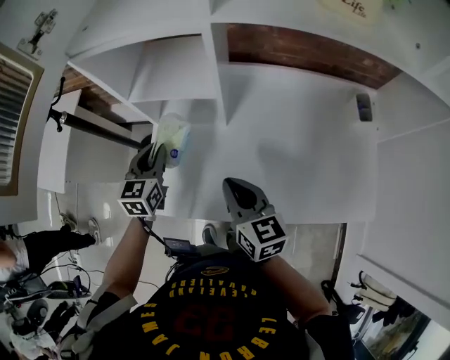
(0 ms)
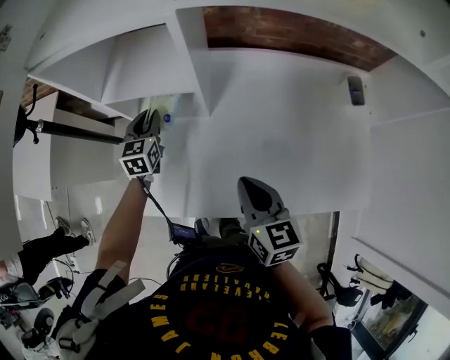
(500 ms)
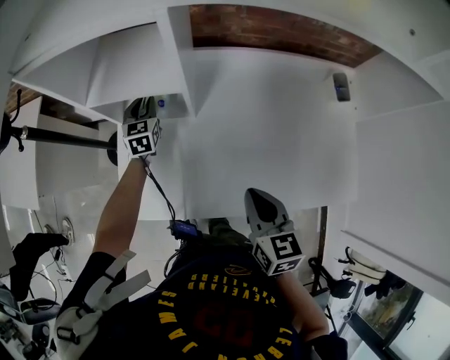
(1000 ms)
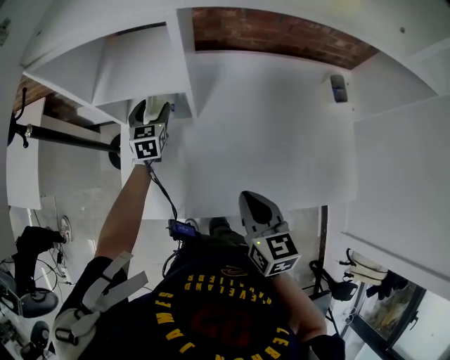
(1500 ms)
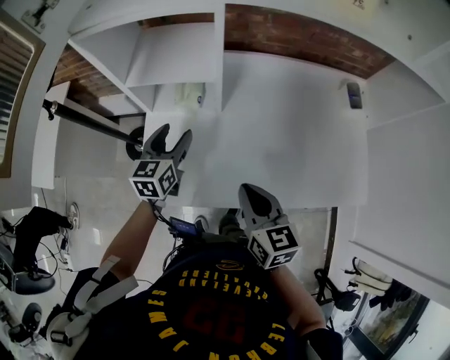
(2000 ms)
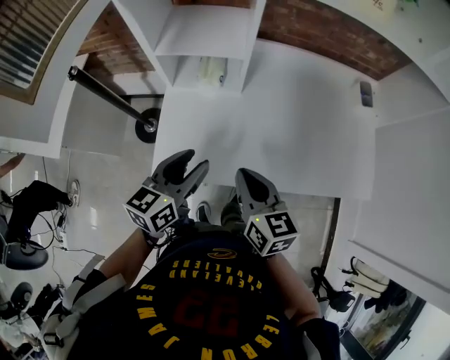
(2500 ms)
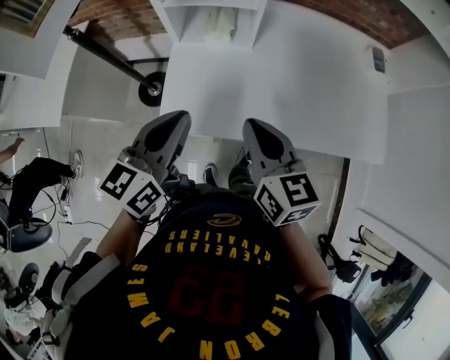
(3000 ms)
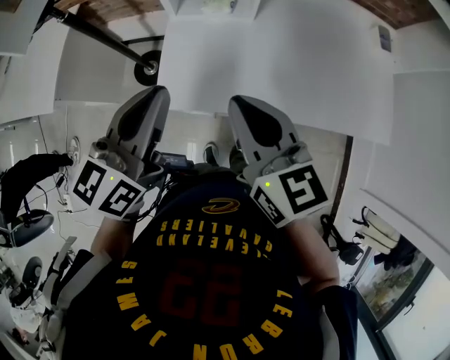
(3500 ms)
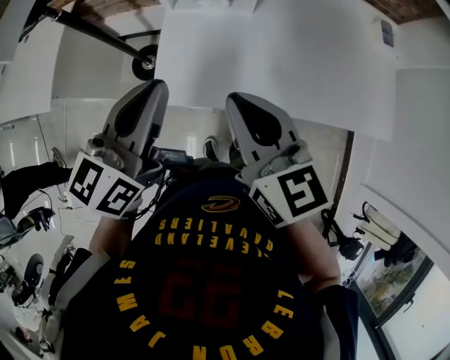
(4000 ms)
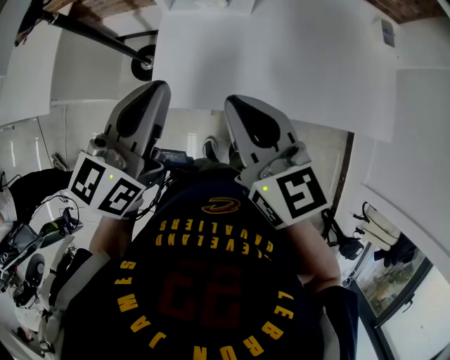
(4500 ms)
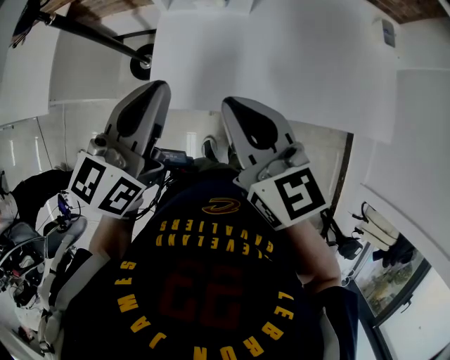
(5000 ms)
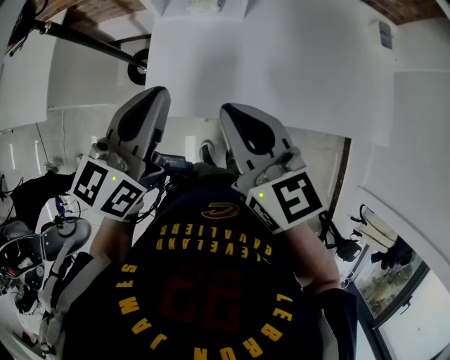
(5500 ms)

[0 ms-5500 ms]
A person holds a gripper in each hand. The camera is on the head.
0 ms to 2000 ms: The left gripper moves to the right, some 5 cm, goes forward and returns, roughly 15 cm each way, and opens up. The right gripper moves backward, roughly 5 cm, and moves about 10 cm to the right and comes back.
2000 ms to 3500 ms: The left gripper is displaced backward and upward by about 25 cm, and closes, while the right gripper is displaced to the left, upward and backward by some 15 cm.
3500 ms to 5500 ms: The left gripper changes place by about 5 cm.

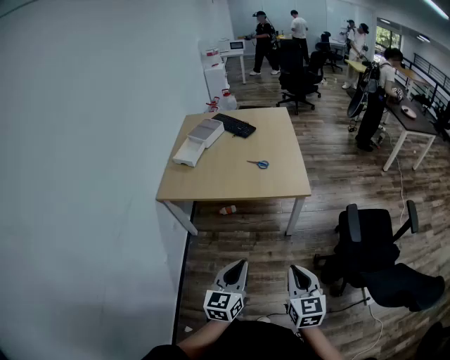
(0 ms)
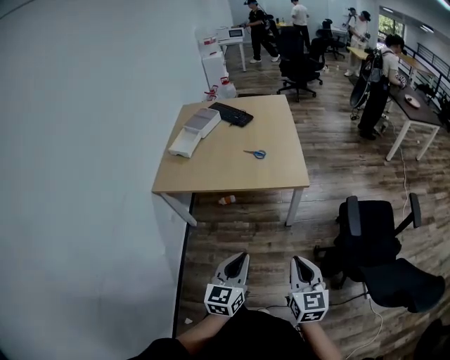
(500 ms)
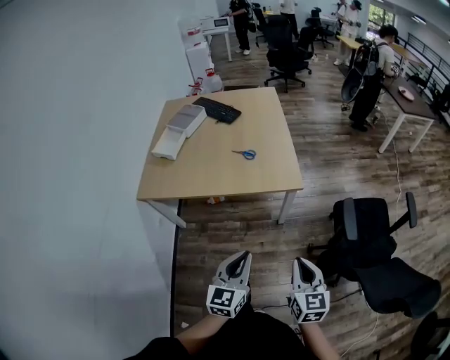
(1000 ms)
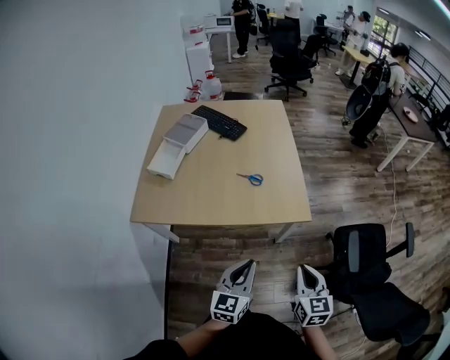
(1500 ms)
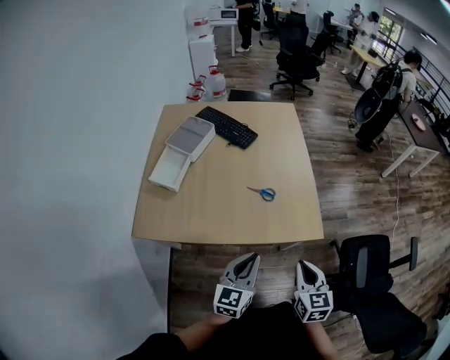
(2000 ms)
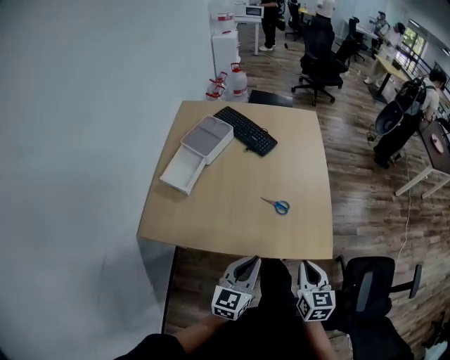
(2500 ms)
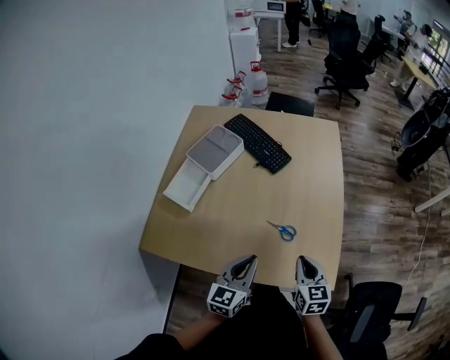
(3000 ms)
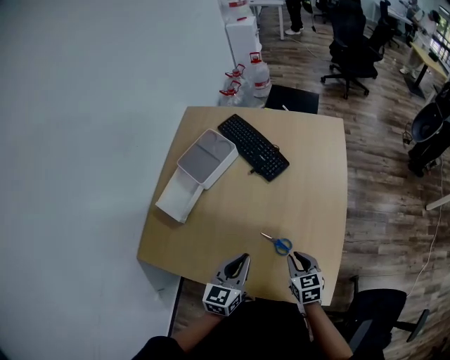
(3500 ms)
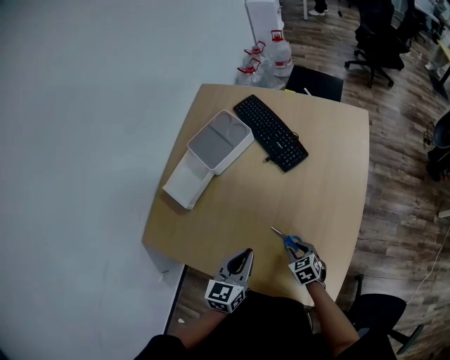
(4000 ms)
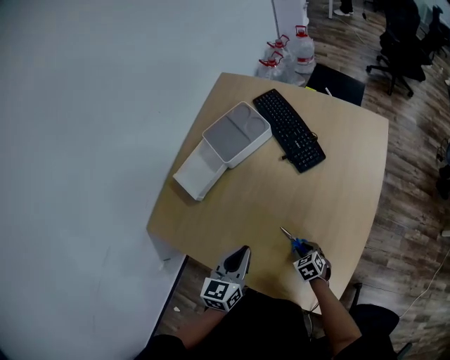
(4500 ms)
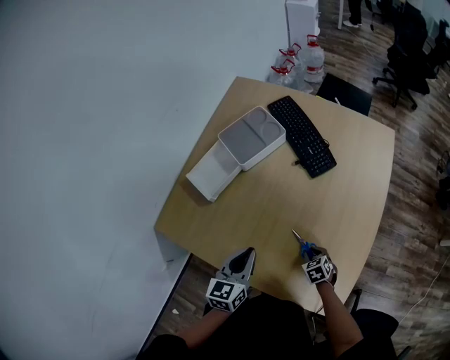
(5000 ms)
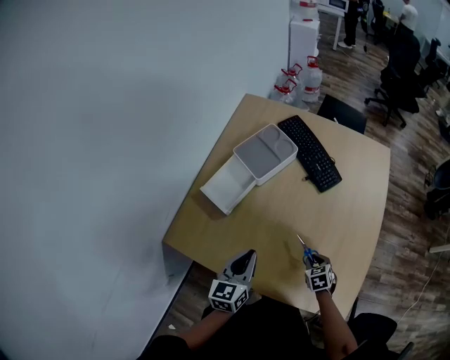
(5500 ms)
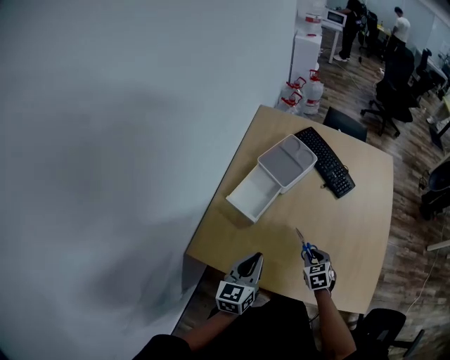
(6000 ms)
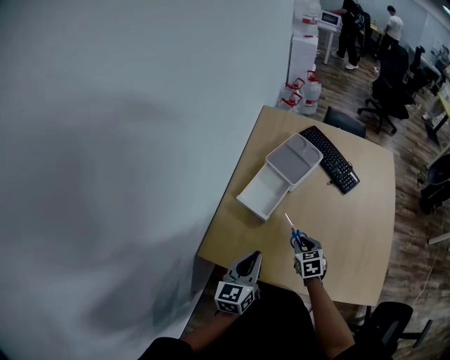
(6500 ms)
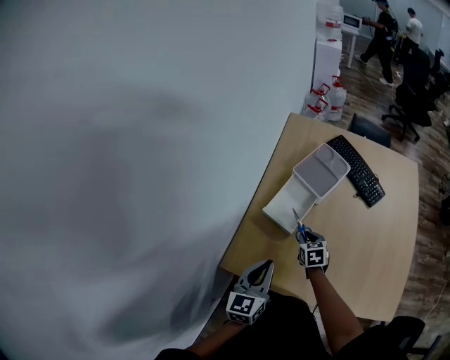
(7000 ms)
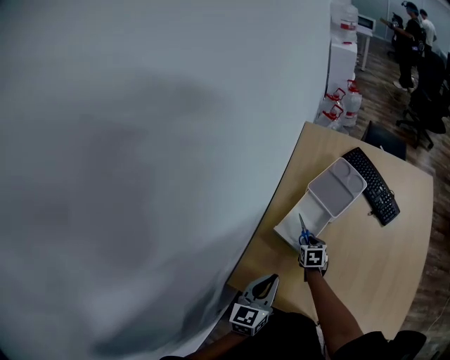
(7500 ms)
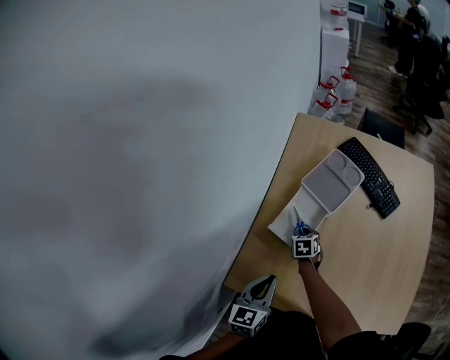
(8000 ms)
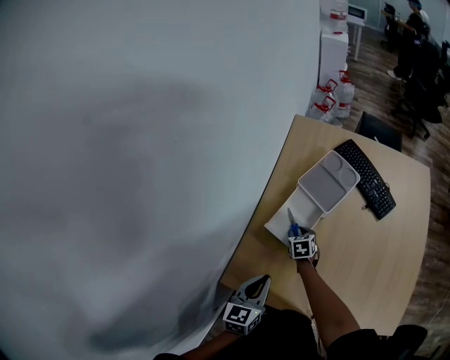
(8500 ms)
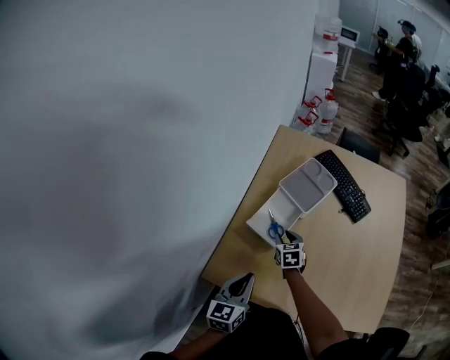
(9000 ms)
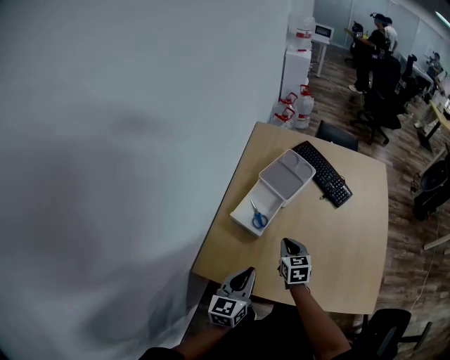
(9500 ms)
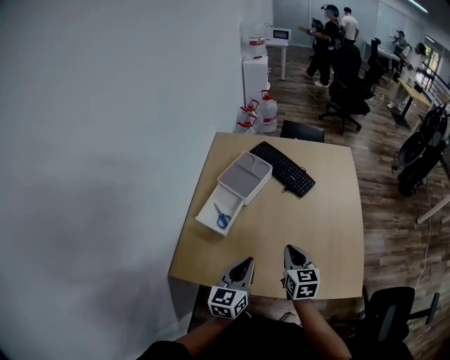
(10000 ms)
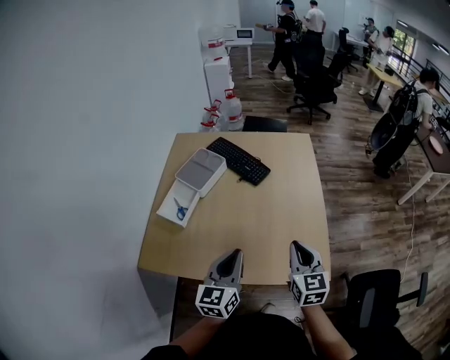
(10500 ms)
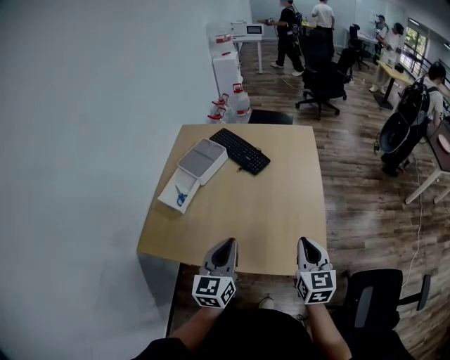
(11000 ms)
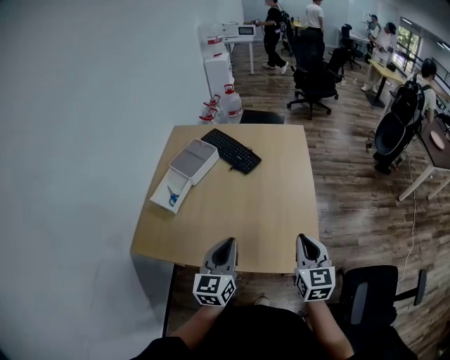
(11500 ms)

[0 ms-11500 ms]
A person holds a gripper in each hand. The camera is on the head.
0 ms to 2000 ms: The two grippers go some 35 cm forward.
2000 ms to 4000 ms: The left gripper shifts by about 30 cm, and turns by roughly 30 degrees. The right gripper ends up roughly 40 cm from where it was, turns by approximately 50 degrees, and opens.
4000 ms to 6000 ms: The two grippers go roughly 25 cm to the left.
6000 ms to 7500 ms: The left gripper heads to the left, covering about 10 cm; the right gripper goes roughly 30 cm to the left and forward.
7500 ms to 9500 ms: The left gripper shifts some 10 cm to the right and backward, while the right gripper travels upward, backward and to the right by about 20 cm.
9500 ms to 11500 ms: Both grippers travel together to the right, roughly 40 cm. The right gripper rotates approximately 30 degrees.

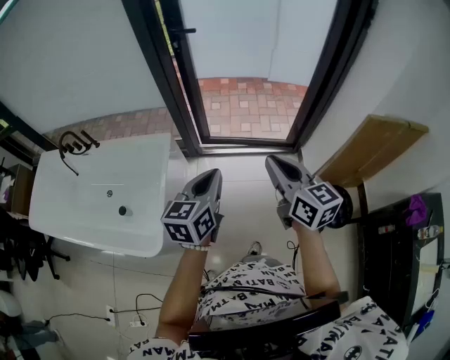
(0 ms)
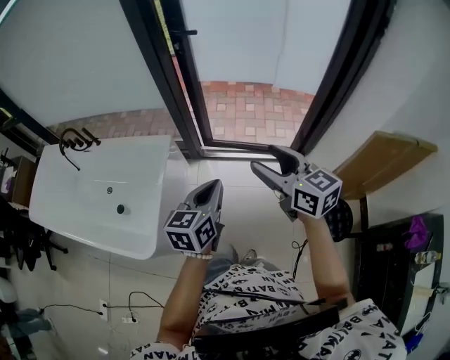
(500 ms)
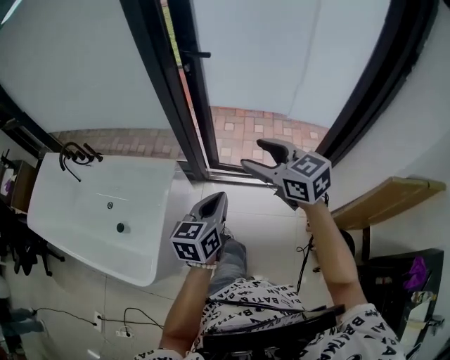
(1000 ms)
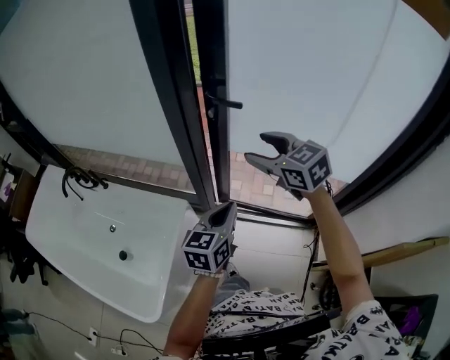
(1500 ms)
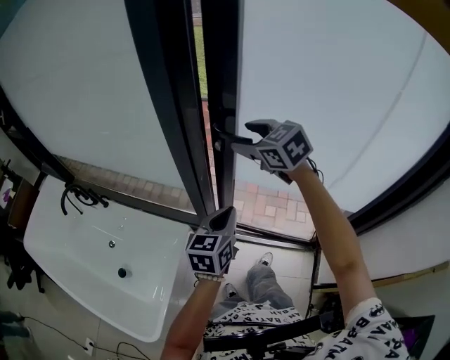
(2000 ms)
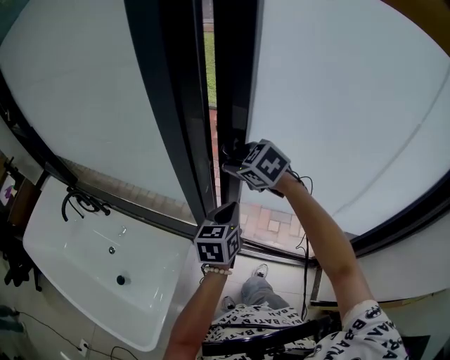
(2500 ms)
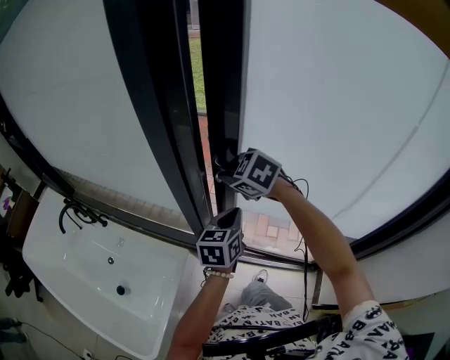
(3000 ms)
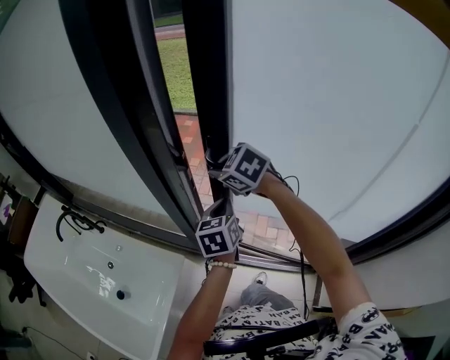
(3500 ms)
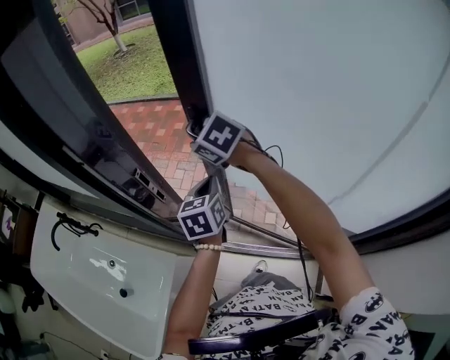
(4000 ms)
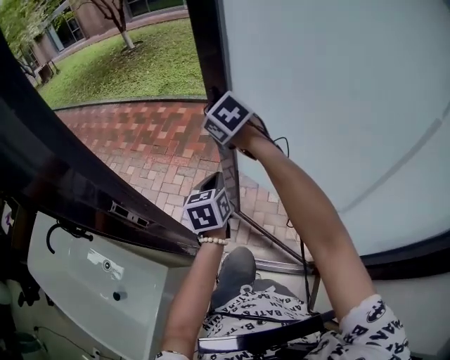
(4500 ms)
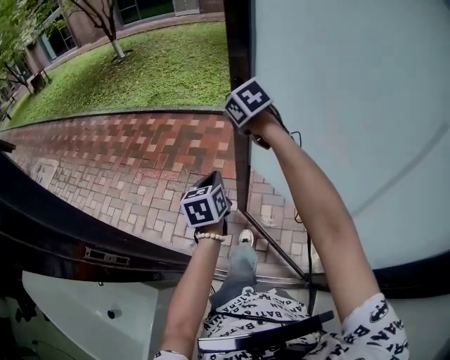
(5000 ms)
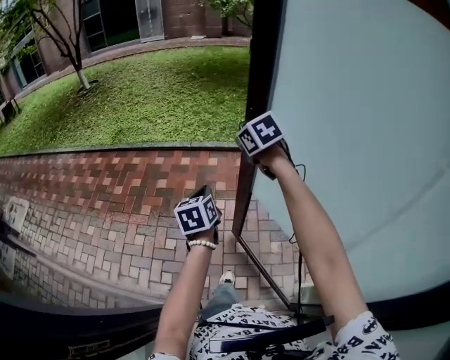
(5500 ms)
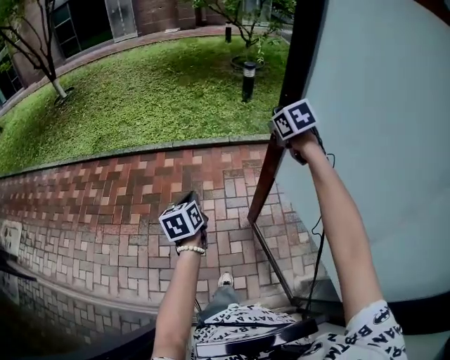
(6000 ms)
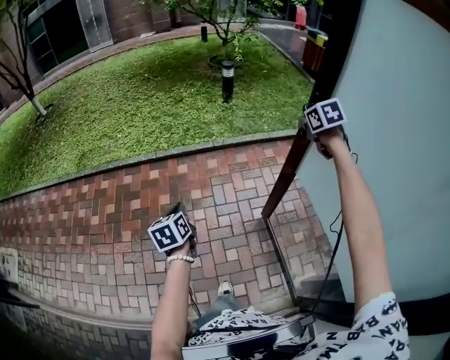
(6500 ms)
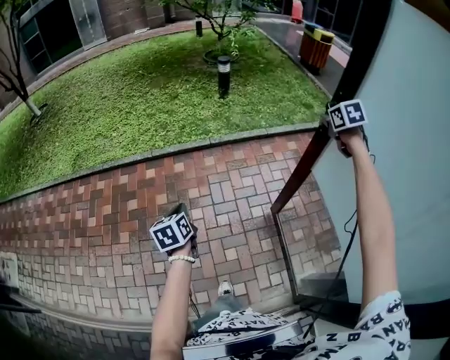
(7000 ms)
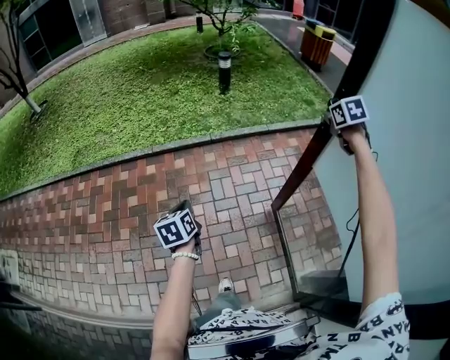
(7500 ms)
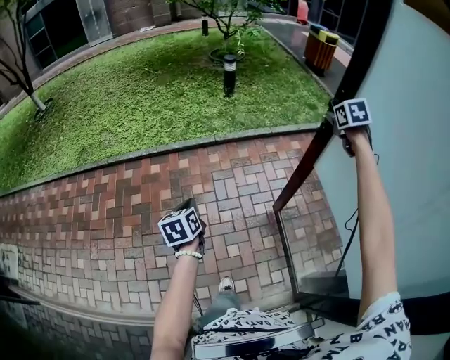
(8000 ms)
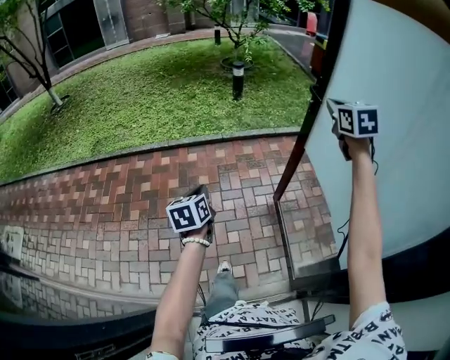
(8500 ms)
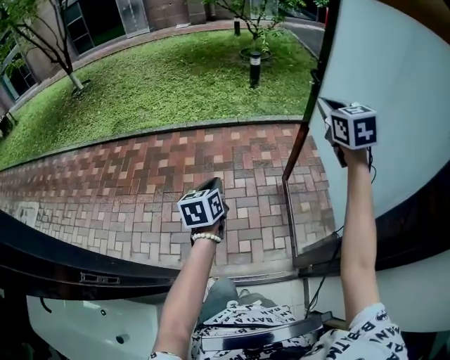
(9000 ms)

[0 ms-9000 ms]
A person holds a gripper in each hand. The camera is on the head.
0 ms to 2000 ms: Both grippers move forward, about 50 cm. The right gripper changes its angle by approximately 50 degrees, and opens up.
2000 ms to 4500 ms: Both grippers move forward and to the right, roughly 35 cm. The right gripper closes its fingers.
4500 ms to 7000 ms: The left gripper ends up roughly 50 cm from where it was, while the right gripper shifts by approximately 80 cm, and turns by about 60 degrees.
7000 ms to 9000 ms: The two grippers go some 40 cm backward and upward. The right gripper changes its angle by about 30 degrees, and opens, then closes again.

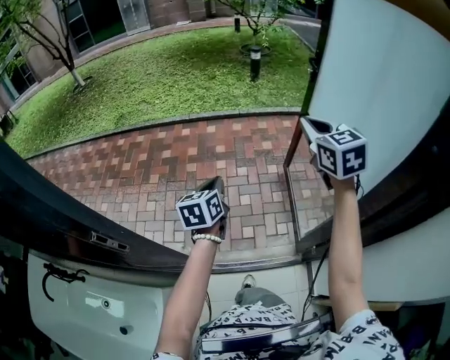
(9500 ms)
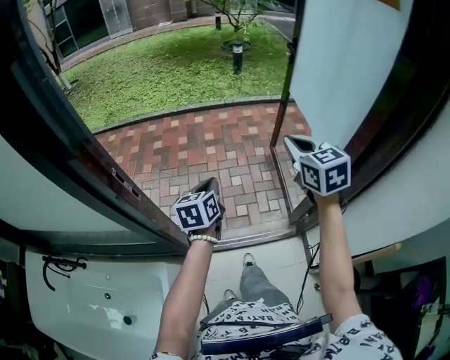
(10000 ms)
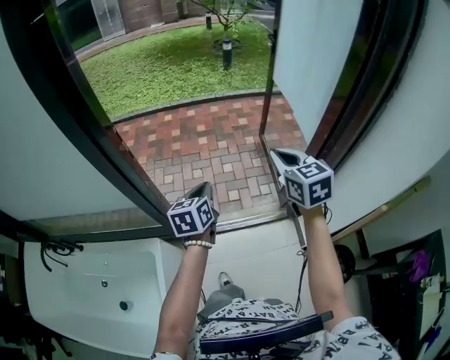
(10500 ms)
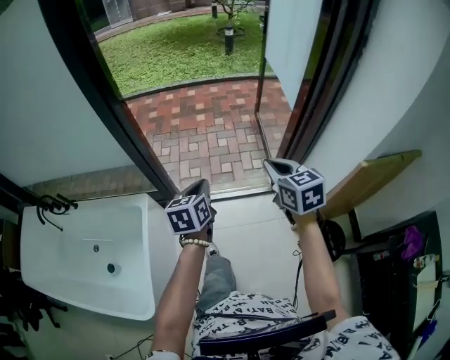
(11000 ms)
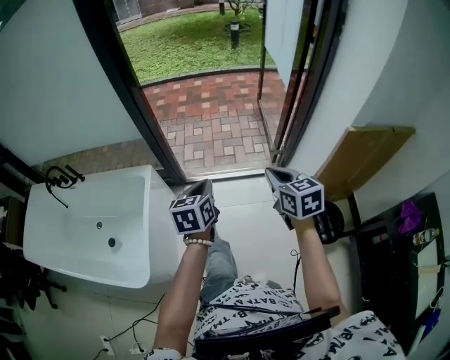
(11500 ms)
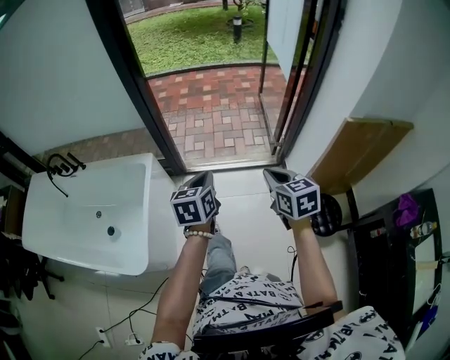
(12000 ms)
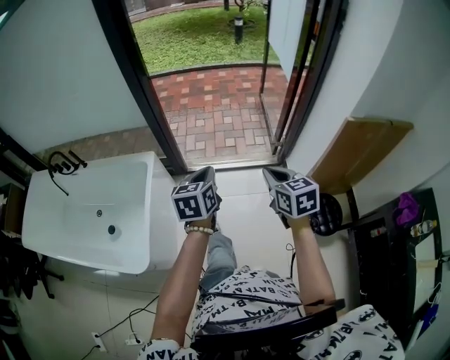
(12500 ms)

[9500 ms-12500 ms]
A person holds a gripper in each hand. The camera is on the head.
9500 ms to 11000 ms: The pair of grippers is taken backward, some 50 cm.
11000 ms to 12500 ms: Both grippers travel together backward, roughly 20 cm.
